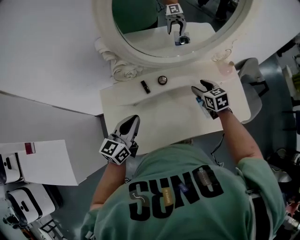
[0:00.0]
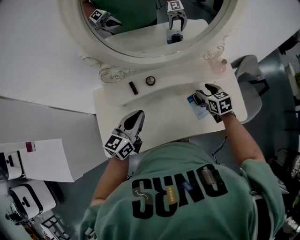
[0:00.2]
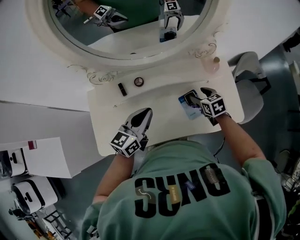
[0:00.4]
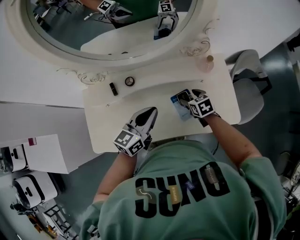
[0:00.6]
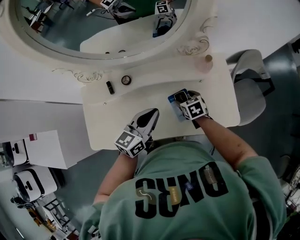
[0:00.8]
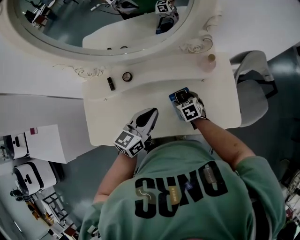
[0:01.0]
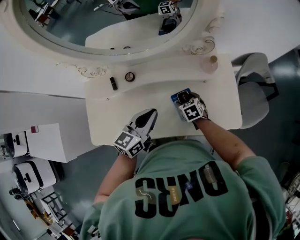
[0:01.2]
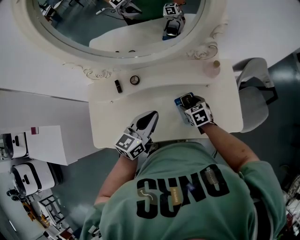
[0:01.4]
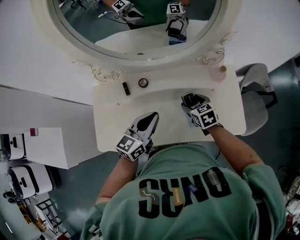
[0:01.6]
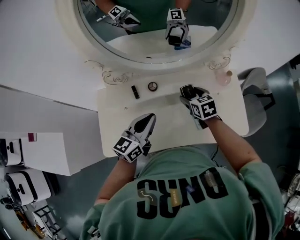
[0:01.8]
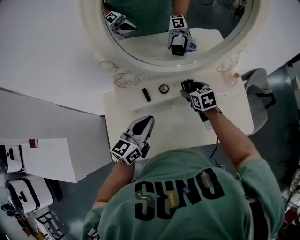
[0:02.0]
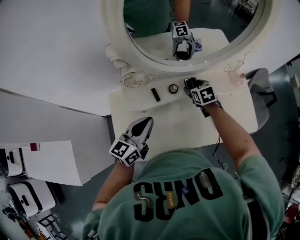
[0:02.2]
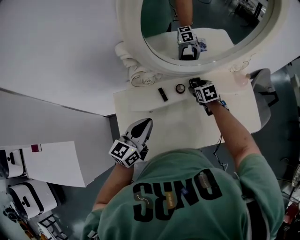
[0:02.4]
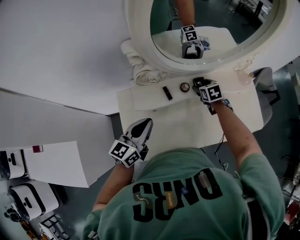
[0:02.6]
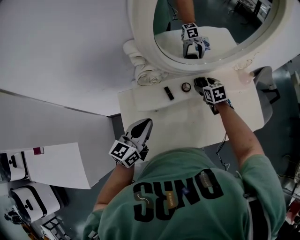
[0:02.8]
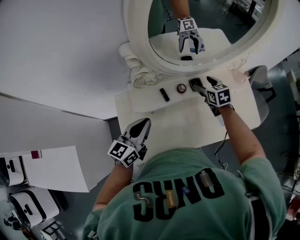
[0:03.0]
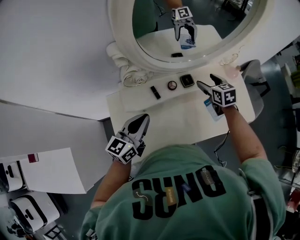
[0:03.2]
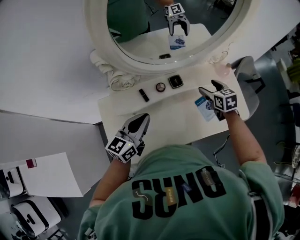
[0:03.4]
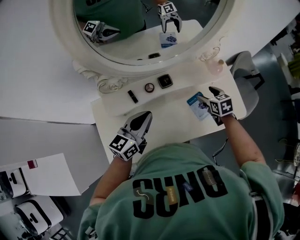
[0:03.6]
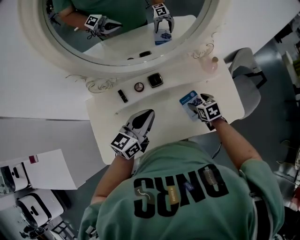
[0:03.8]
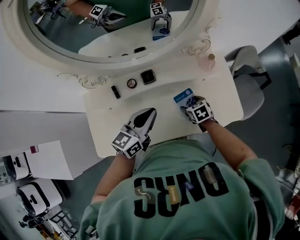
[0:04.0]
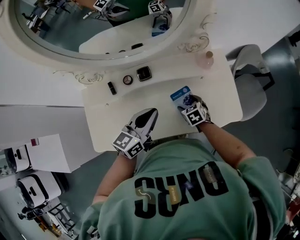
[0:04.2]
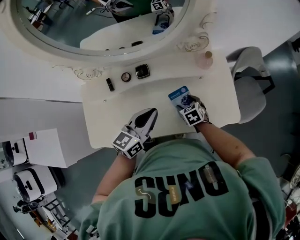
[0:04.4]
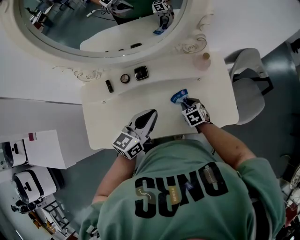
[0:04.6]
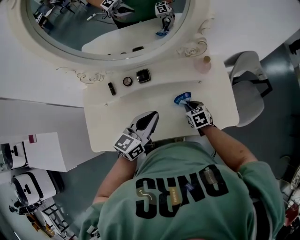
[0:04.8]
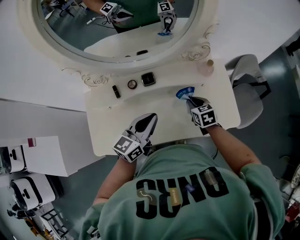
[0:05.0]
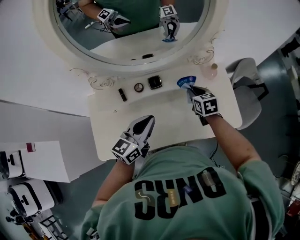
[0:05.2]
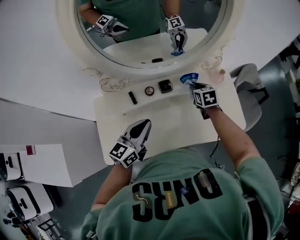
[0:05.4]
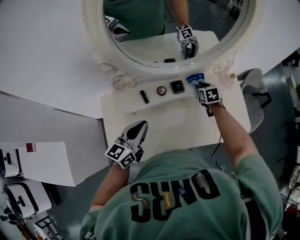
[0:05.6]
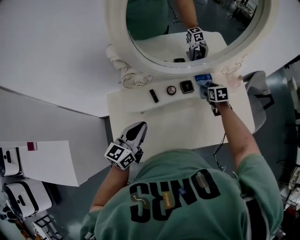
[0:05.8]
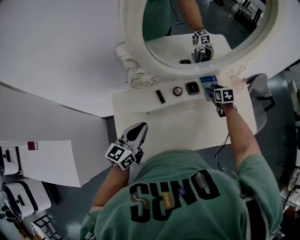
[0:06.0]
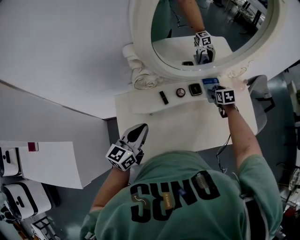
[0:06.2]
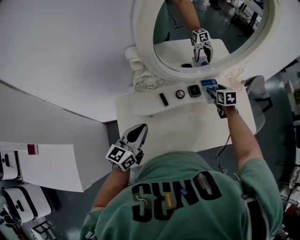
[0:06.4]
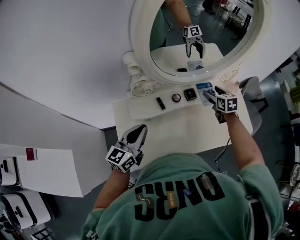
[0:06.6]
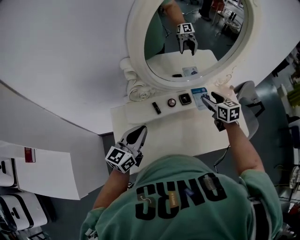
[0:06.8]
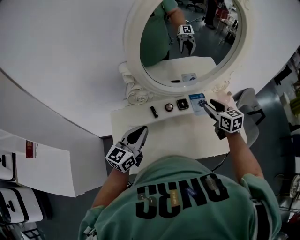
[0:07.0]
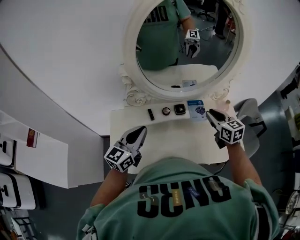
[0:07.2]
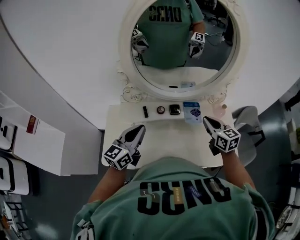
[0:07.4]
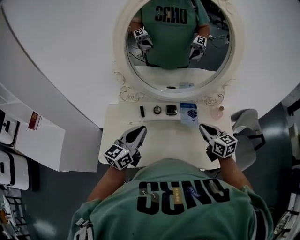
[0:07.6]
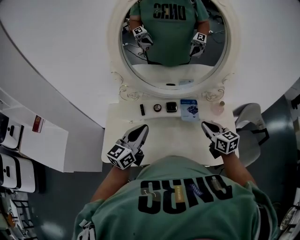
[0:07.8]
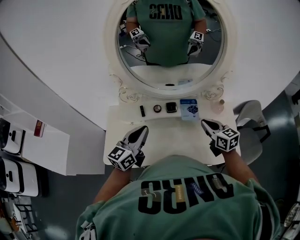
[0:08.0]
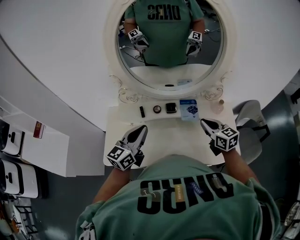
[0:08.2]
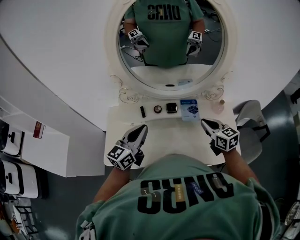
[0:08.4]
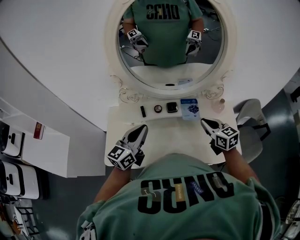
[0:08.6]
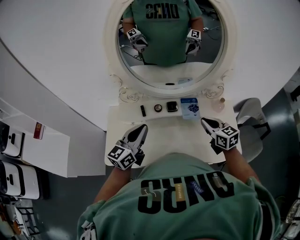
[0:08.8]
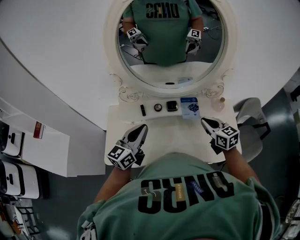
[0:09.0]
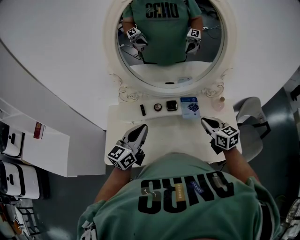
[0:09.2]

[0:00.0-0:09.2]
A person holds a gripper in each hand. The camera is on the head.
0:00.0 to 0:01.6: The right gripper travels to the right by approximately 10 cm, and reaches roughly 15 cm downward, then returns. The left gripper moves to the right, approximately 20 cm.
0:01.6 to 0:03.0: The right gripper moves to the left and forward, about 15 cm, while the left gripper is displaced to the left by approximately 25 cm.
0:03.0 to 0:04.6: The left gripper goes roughly 35 cm to the right, while the right gripper moves to the right, downward and backward, about 30 cm, and closes up.
0:04.6 to 0:06.2: The left gripper is displaced to the left by roughly 35 cm, while the right gripper moves forward, to the left and upward, about 20 cm, changes its angle by roughly 20 degrees, and opens up.
0:06.2 to 0:07.6: The right gripper goes some 25 cm upward and backward, tilts its fingers about 30 degrees upward, and closes. Meanwhile the left gripper heads to the right and upward, covering roughly 20 cm.
0:07.6 to 0:09.2: The grippers stay close to where they were, moving slightly.

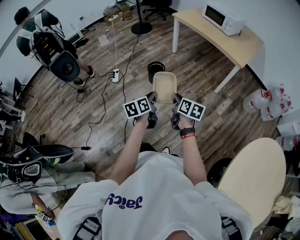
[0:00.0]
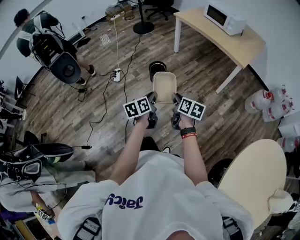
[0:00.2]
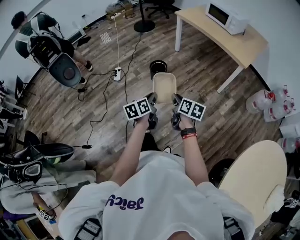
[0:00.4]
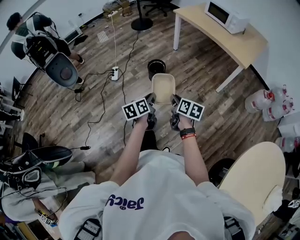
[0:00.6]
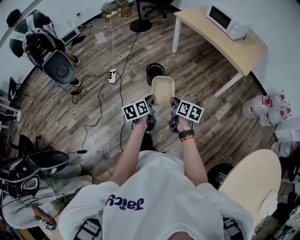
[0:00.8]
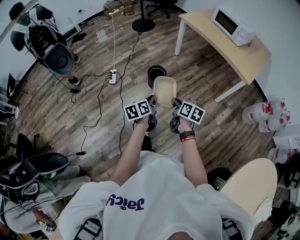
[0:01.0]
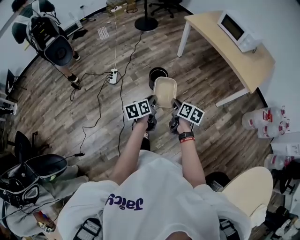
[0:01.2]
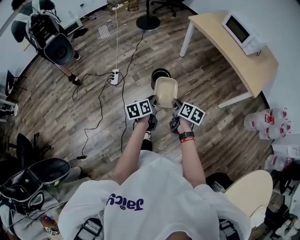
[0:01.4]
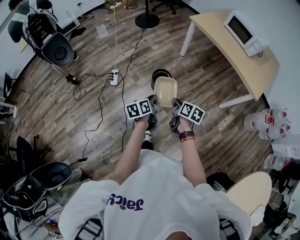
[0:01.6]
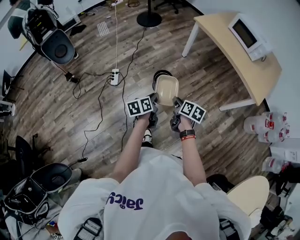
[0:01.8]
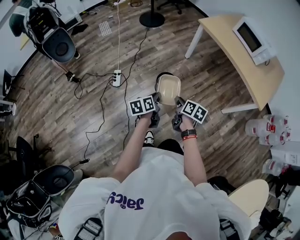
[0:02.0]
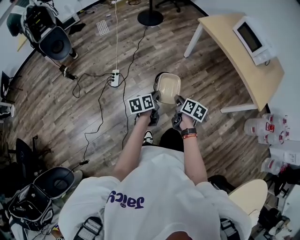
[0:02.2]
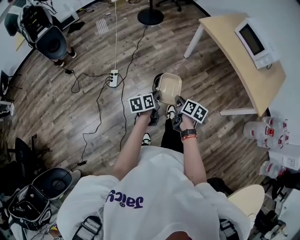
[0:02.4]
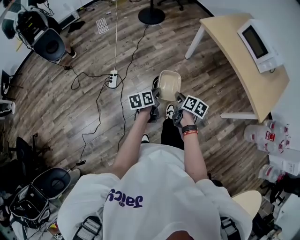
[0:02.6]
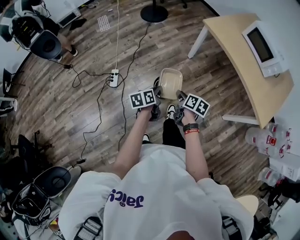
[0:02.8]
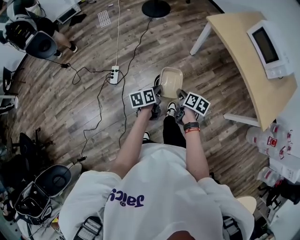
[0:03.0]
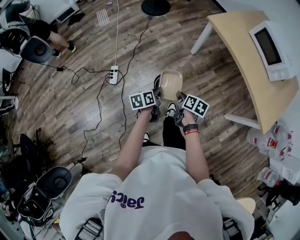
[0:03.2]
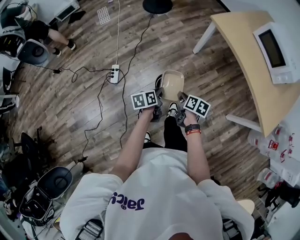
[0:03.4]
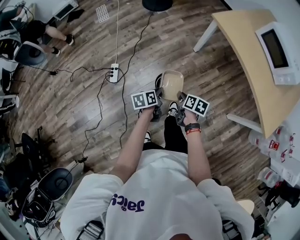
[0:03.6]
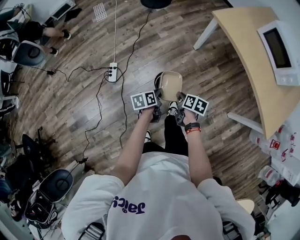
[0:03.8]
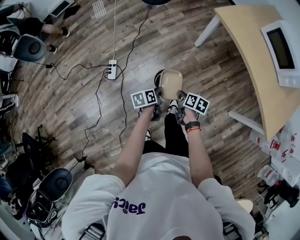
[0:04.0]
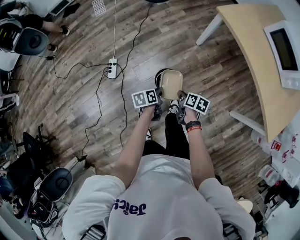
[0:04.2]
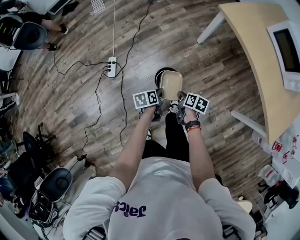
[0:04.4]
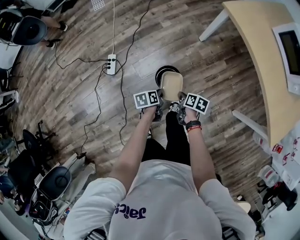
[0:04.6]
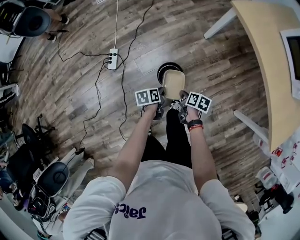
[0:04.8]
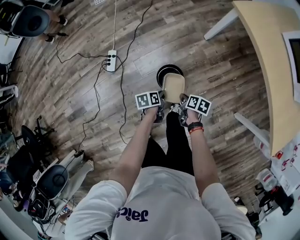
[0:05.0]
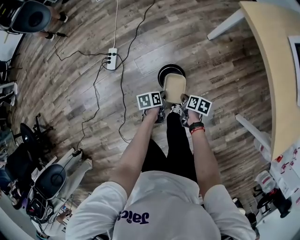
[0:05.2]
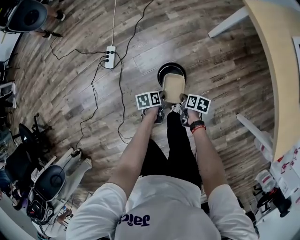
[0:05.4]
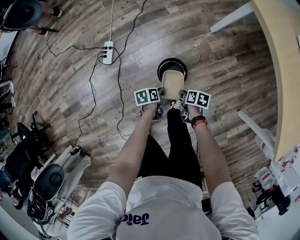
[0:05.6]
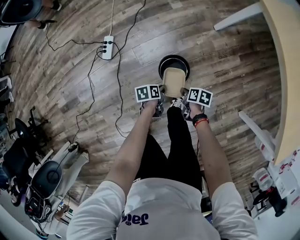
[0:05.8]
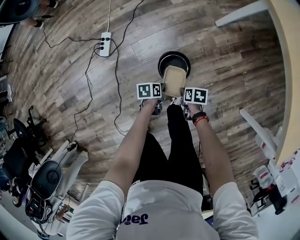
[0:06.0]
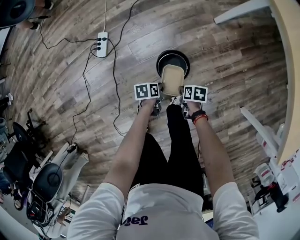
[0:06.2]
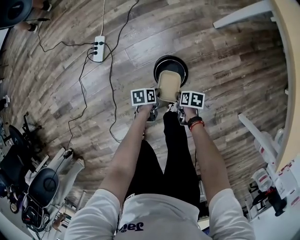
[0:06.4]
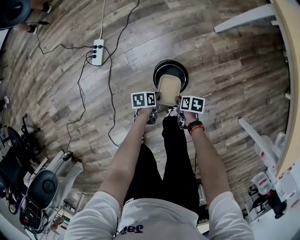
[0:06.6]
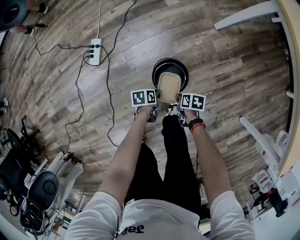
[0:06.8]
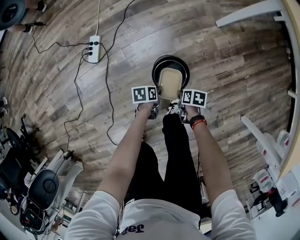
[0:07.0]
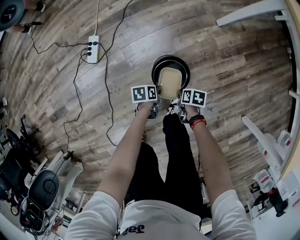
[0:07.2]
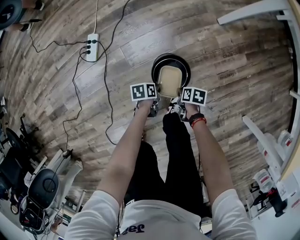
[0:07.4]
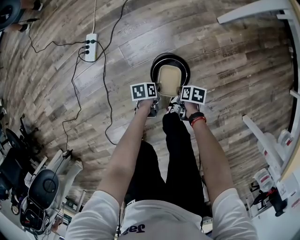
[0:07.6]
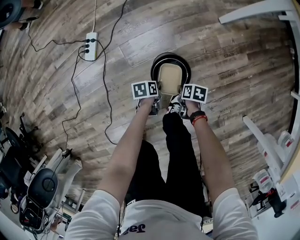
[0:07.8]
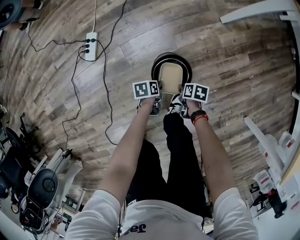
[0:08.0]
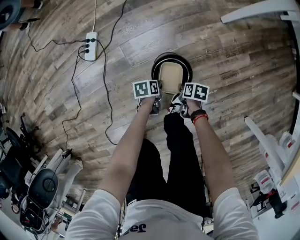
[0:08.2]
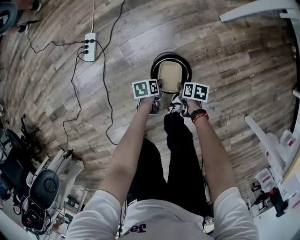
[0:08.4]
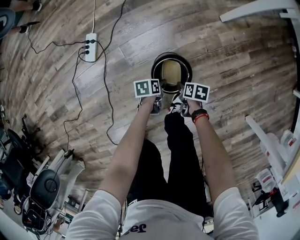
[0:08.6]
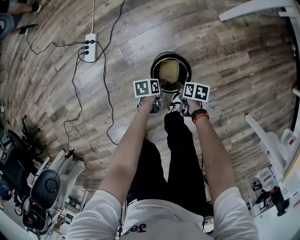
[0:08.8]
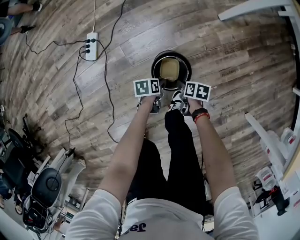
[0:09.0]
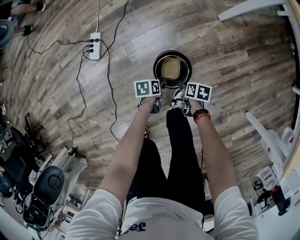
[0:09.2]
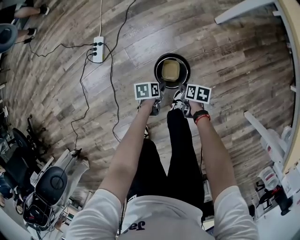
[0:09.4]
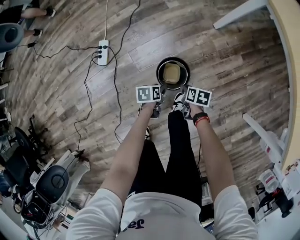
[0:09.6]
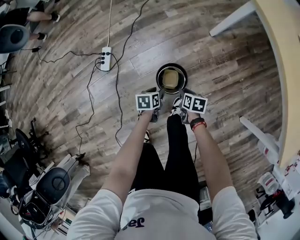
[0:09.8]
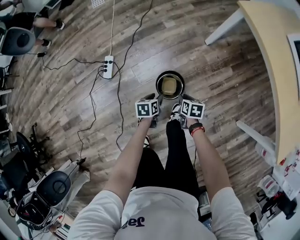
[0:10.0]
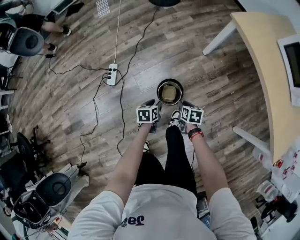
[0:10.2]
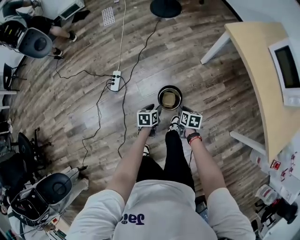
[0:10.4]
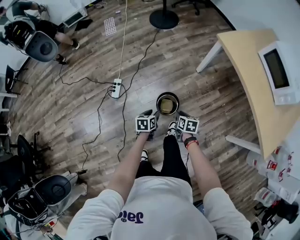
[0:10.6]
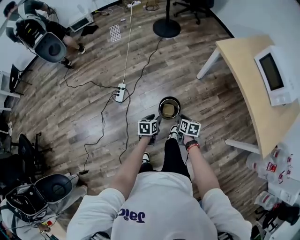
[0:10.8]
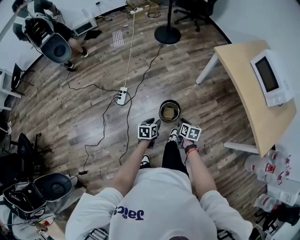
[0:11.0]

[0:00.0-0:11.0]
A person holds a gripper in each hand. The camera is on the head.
0:00.0 to 0:01.6: The grippers both shift forward by roughly 35 cm.
0:01.6 to 0:03.2: Both grippers move forward, about 35 cm.
0:03.2 to 0:04.8: Both grippers travel together downward, about 20 cm.
0:04.8 to 0:06.2: The two grippers go some 25 cm downward. The right gripper changes its angle by roughly 20 degrees.
0:06.2 to 0:07.8: The two grippers go about 15 cm downward.
0:07.8 to 0:09.4: The two grippers go about 10 cm upward. The left gripper opens up.
0:09.4 to 0:11.0: The grippers both shift upward by some 50 cm. The left gripper swivels some 30 degrees. The right gripper turns by about 30 degrees.

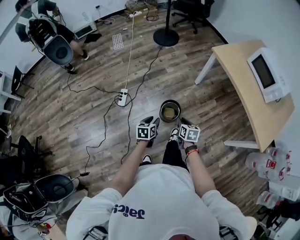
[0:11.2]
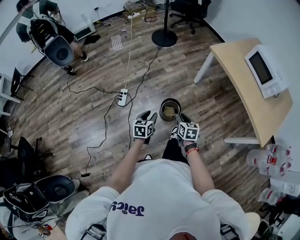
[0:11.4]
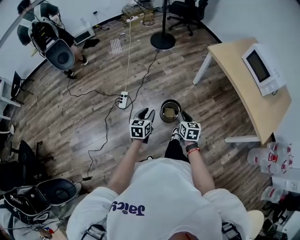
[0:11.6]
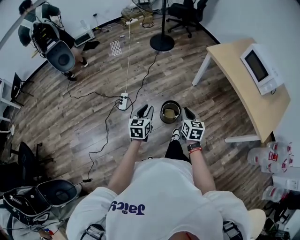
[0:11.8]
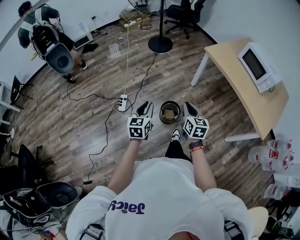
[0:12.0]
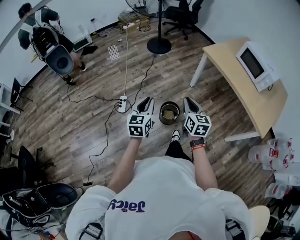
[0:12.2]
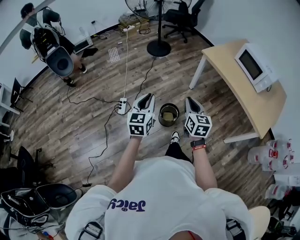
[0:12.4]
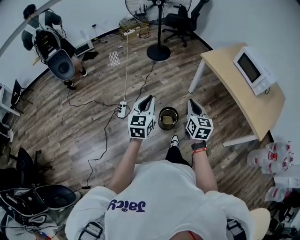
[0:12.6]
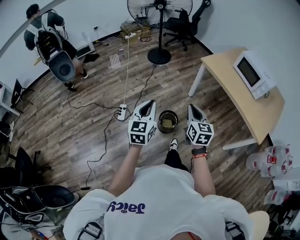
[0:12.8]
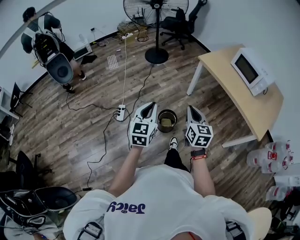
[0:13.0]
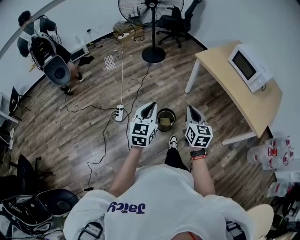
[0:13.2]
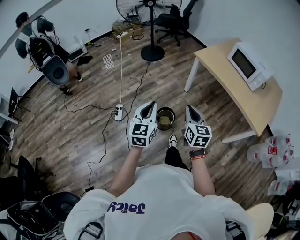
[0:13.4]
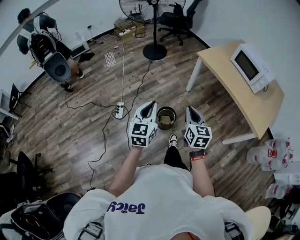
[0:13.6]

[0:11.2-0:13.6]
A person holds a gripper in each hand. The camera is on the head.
0:11.2 to 0:12.4: Both grippers travel together upward, about 25 cm. The right gripper rotates some 30 degrees. Meanwhile the left gripper changes its angle by about 40 degrees, and closes up.
0:12.4 to 0:13.6: The left gripper moves some 5 cm.

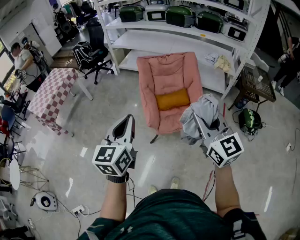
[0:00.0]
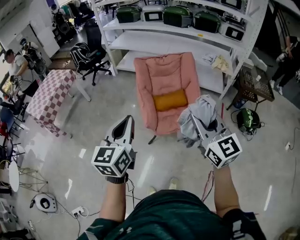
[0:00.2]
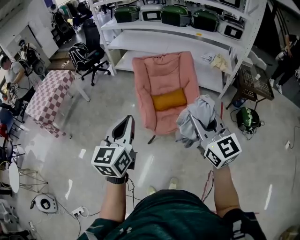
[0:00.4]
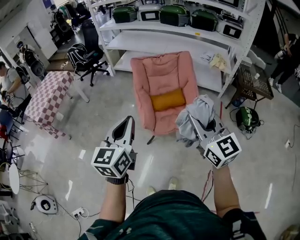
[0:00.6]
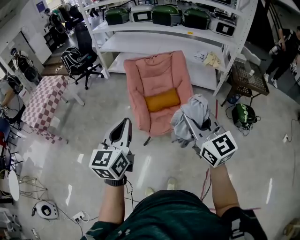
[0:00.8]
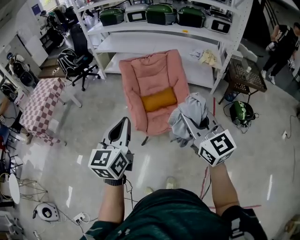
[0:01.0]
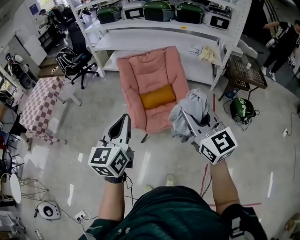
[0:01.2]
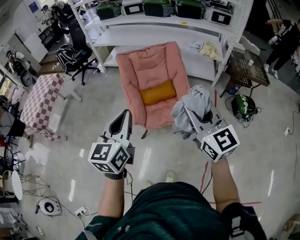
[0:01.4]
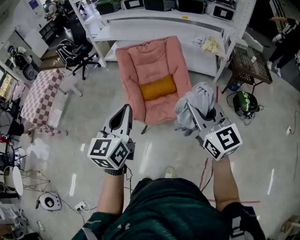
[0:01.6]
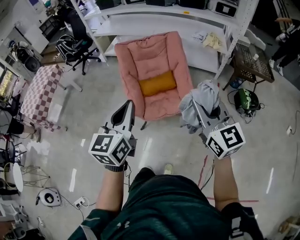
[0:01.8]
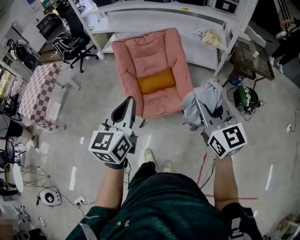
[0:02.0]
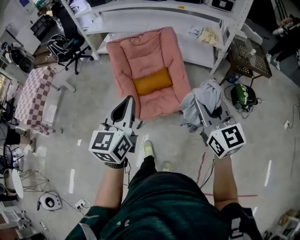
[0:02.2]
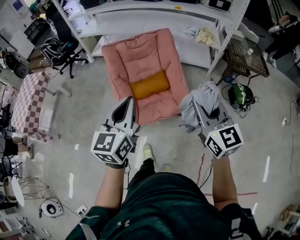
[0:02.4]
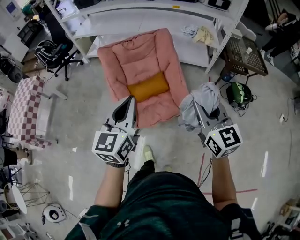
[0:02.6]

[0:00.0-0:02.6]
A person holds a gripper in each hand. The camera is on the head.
0:00.0 to 0:01.2: Both grippers move to the right, about 10 cm.
0:01.2 to 0:02.6: The left gripper moves forward, some 20 cm. The right gripper shifts about 20 cm forward, to the right and downward.
